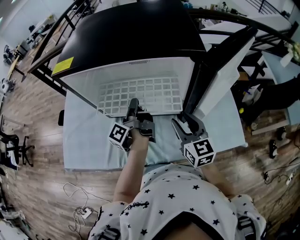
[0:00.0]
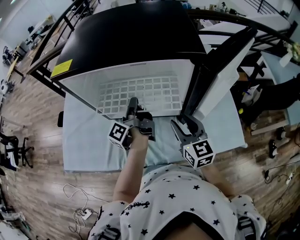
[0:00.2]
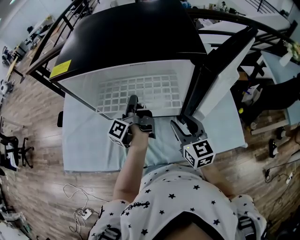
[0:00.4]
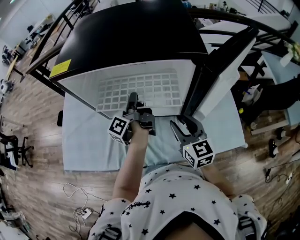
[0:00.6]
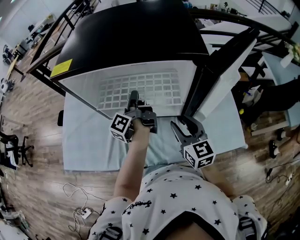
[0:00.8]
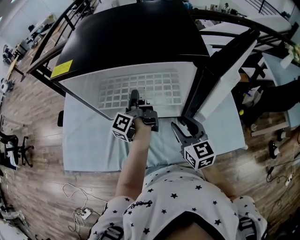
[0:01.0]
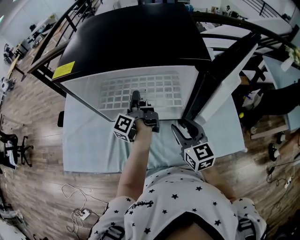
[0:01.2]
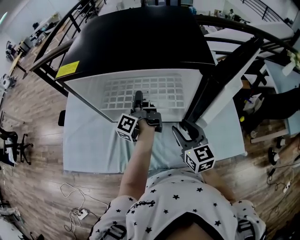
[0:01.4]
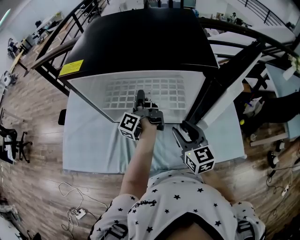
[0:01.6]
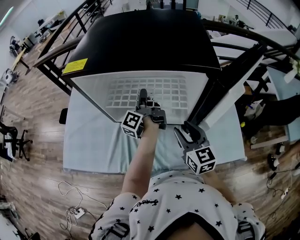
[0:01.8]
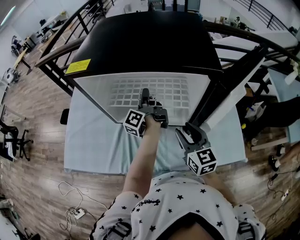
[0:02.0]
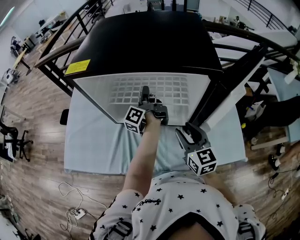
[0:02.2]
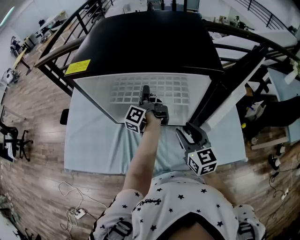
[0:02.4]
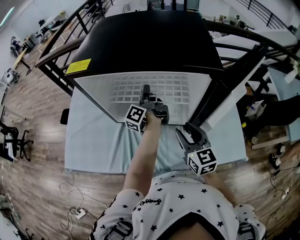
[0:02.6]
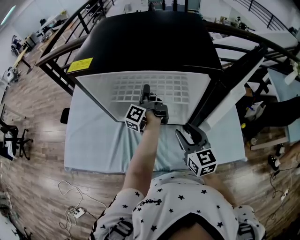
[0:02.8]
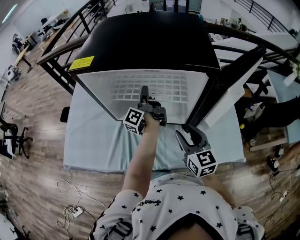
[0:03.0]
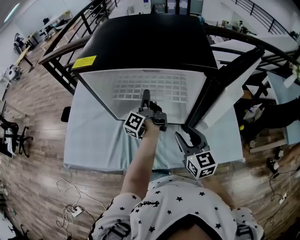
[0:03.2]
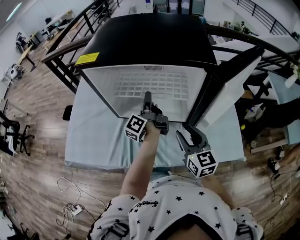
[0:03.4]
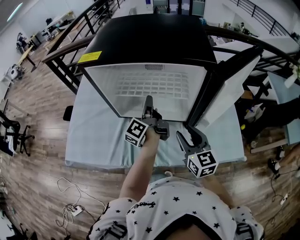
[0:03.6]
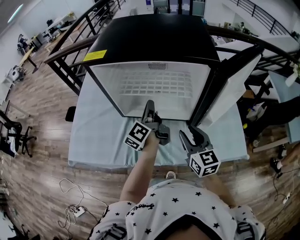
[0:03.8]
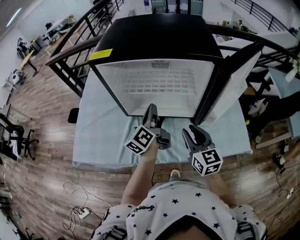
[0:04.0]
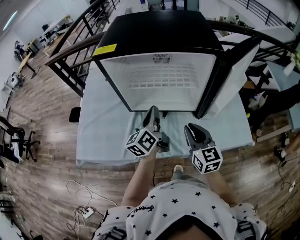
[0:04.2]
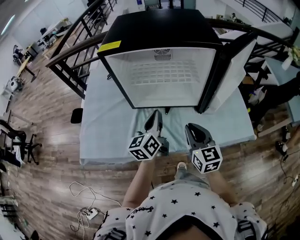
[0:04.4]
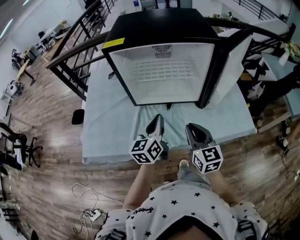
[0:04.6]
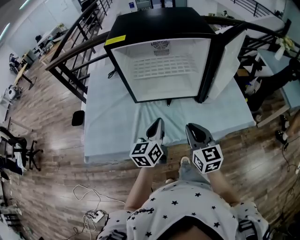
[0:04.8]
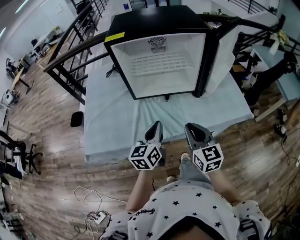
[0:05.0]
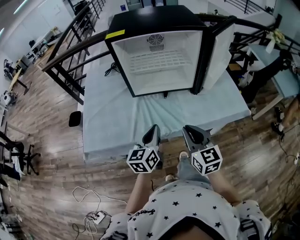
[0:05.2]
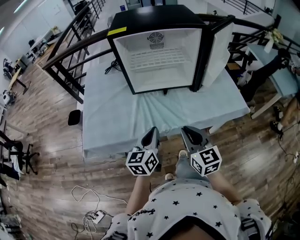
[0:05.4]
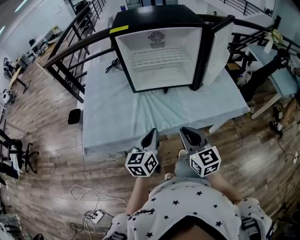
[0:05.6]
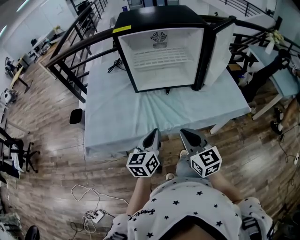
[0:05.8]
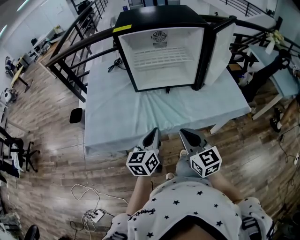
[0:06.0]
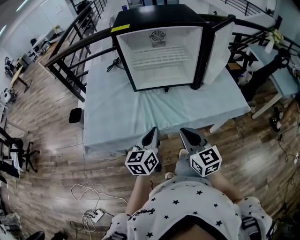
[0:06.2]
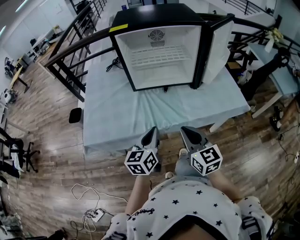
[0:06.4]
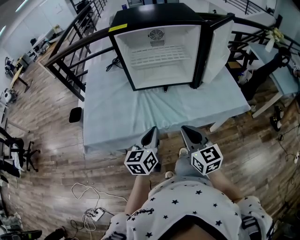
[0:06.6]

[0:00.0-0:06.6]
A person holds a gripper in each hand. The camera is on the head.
0:03.2 to 0:05.0: The right gripper moves some 20 cm, and closes.
0:05.0 to 0:06.6: The right gripper moves about 10 cm.

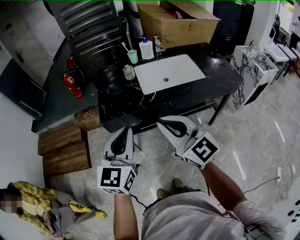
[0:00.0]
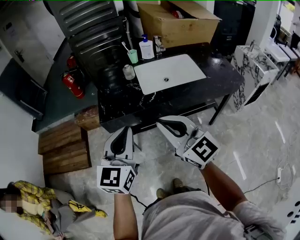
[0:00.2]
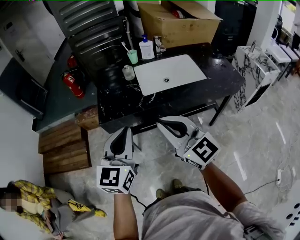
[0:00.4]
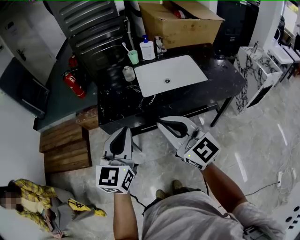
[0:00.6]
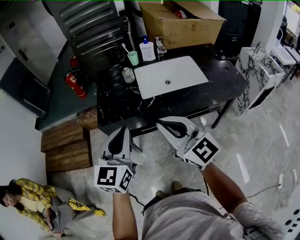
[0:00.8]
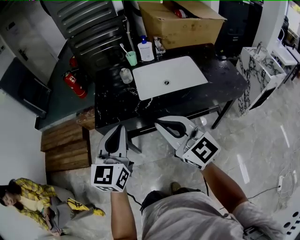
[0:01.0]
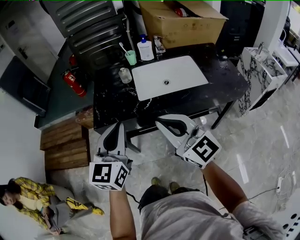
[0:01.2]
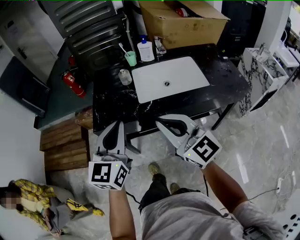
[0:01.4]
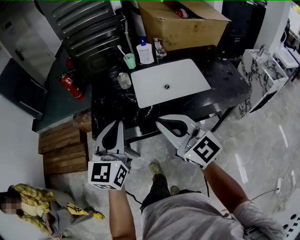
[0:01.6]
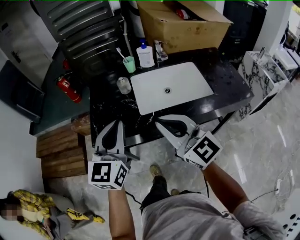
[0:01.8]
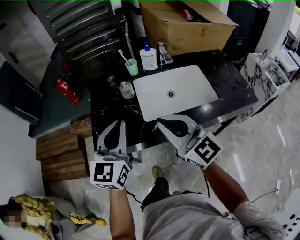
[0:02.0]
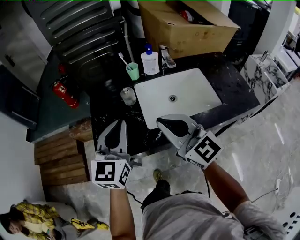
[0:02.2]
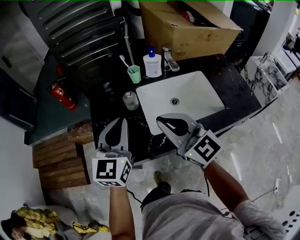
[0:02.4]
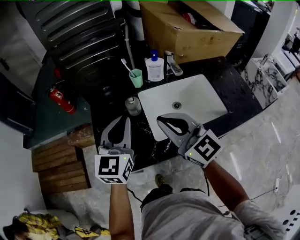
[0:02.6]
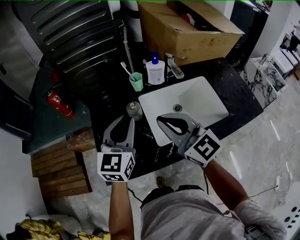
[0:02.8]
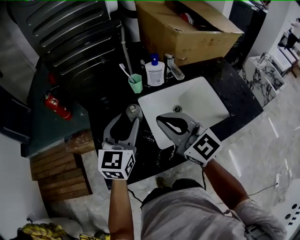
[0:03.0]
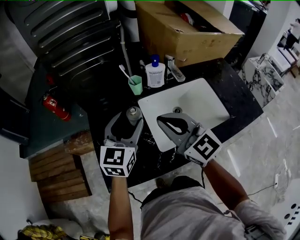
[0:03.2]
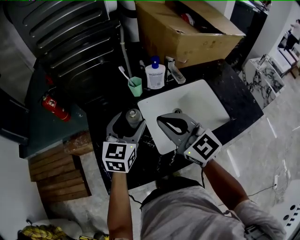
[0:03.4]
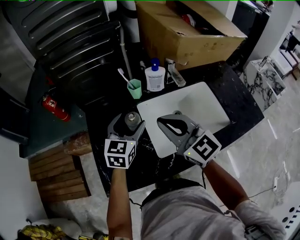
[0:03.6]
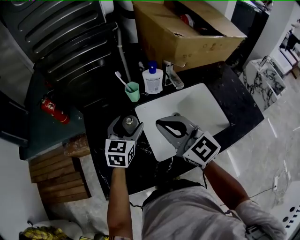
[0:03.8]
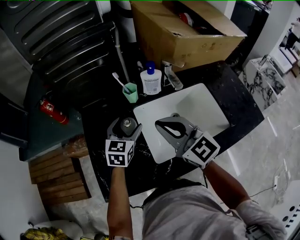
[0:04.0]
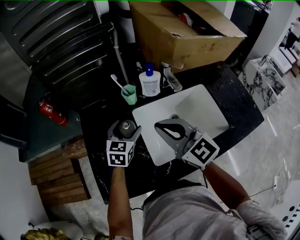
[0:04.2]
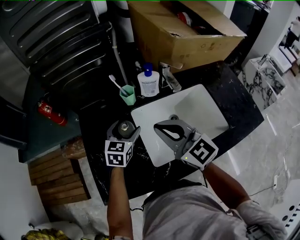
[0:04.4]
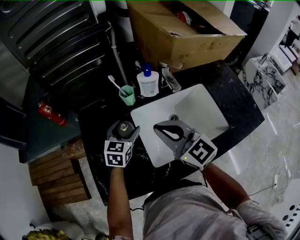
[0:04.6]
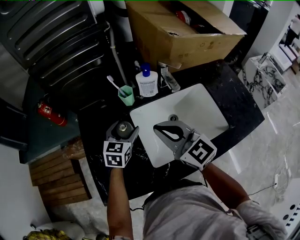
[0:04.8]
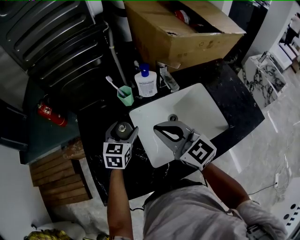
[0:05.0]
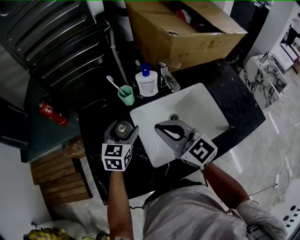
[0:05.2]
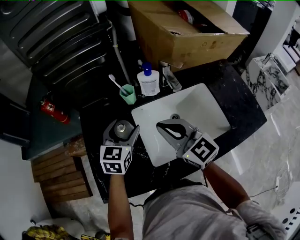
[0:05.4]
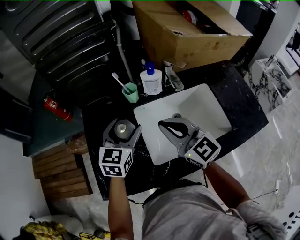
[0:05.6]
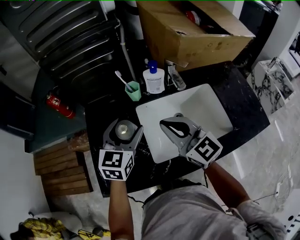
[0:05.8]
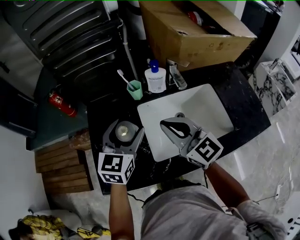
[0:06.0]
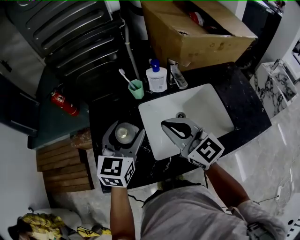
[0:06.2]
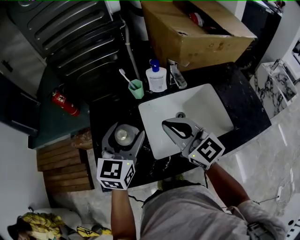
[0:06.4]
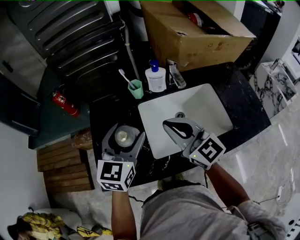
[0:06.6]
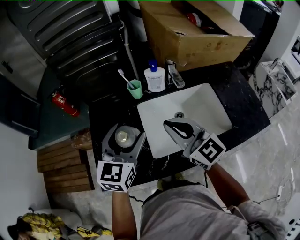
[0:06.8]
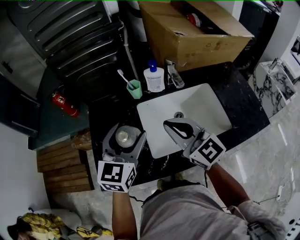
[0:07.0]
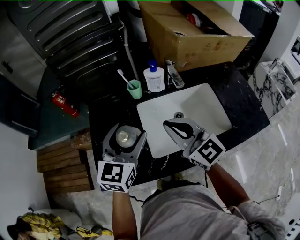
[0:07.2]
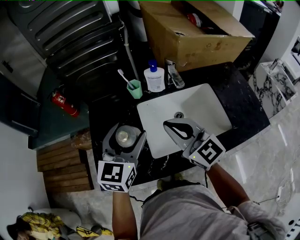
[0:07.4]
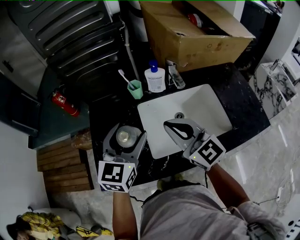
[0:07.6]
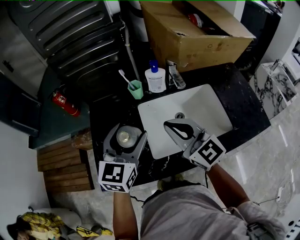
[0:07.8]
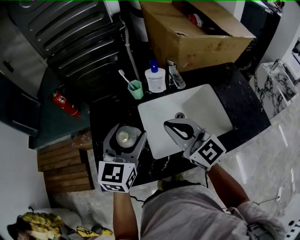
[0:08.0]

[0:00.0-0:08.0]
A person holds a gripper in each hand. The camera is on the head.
0:00.0 to 0:01.6: The two grippers go approximately 15 cm forward and to the right.
0:01.6 to 0:03.2: The two grippers go some 30 cm forward. The left gripper opens.
0:03.2 to 0:04.8: The left gripper moves downward and forward, about 15 cm, while the right gripper changes place by roughly 5 cm.
0:04.8 to 0:06.4: The left gripper heads upward and backward, covering some 15 cm.
0:06.4 to 0:08.0: There are only small adjustments of the grippers.

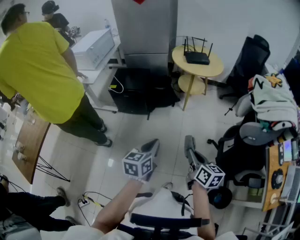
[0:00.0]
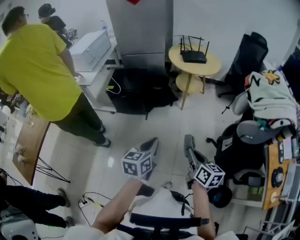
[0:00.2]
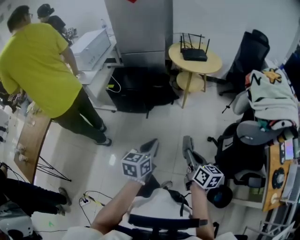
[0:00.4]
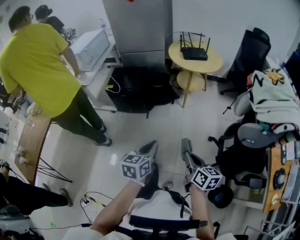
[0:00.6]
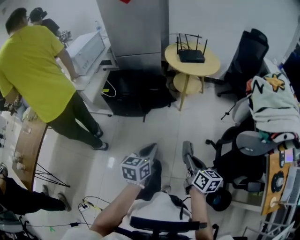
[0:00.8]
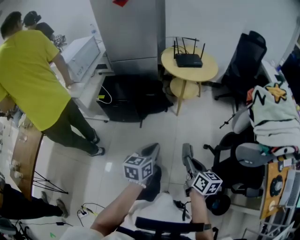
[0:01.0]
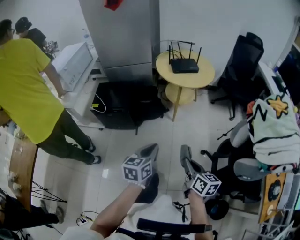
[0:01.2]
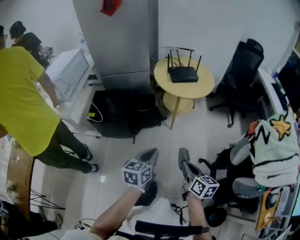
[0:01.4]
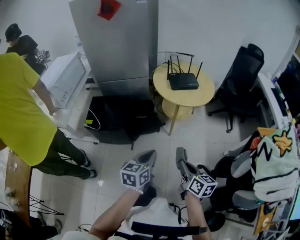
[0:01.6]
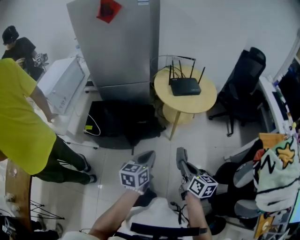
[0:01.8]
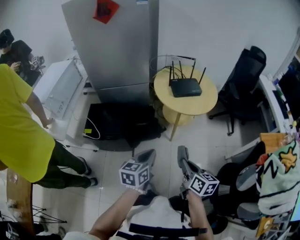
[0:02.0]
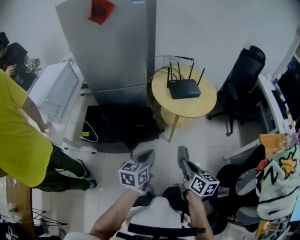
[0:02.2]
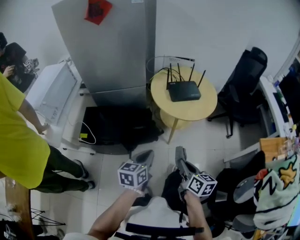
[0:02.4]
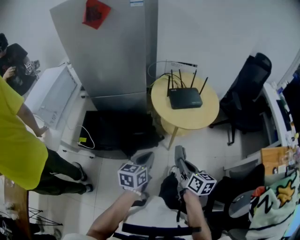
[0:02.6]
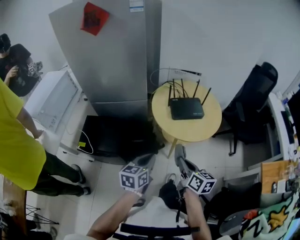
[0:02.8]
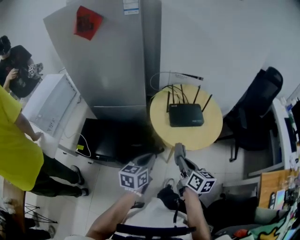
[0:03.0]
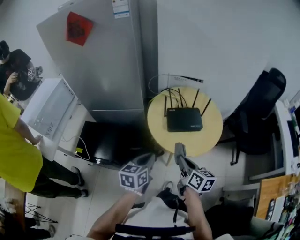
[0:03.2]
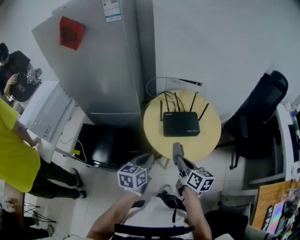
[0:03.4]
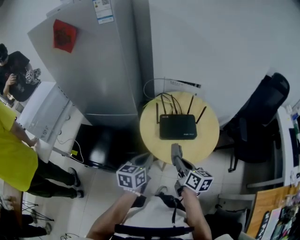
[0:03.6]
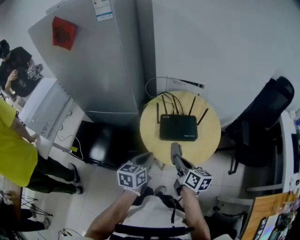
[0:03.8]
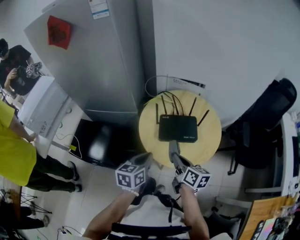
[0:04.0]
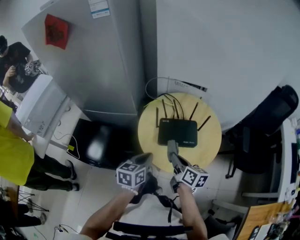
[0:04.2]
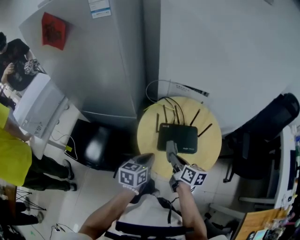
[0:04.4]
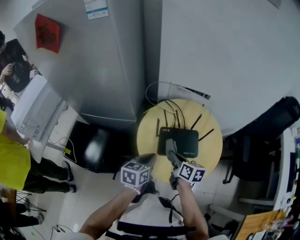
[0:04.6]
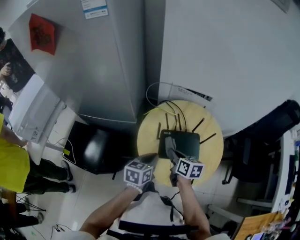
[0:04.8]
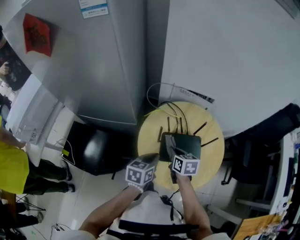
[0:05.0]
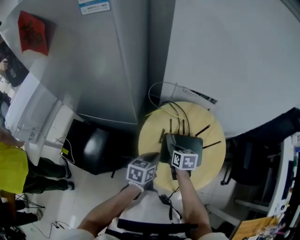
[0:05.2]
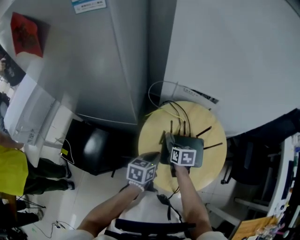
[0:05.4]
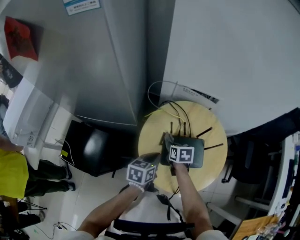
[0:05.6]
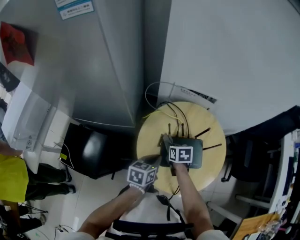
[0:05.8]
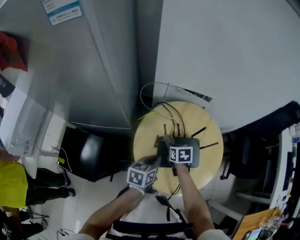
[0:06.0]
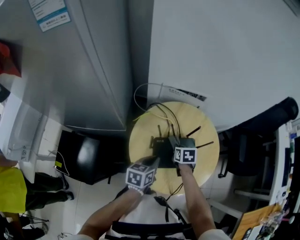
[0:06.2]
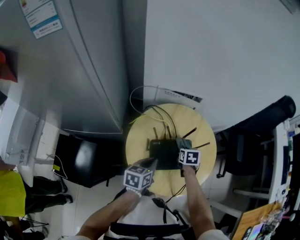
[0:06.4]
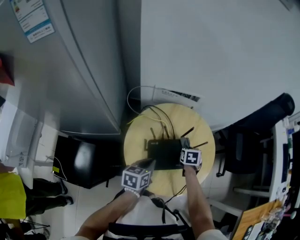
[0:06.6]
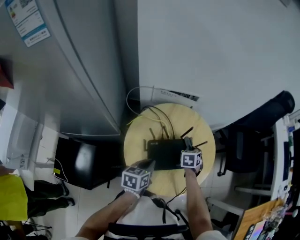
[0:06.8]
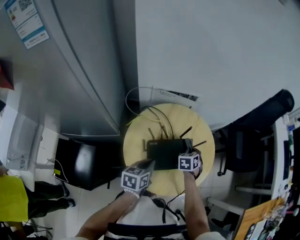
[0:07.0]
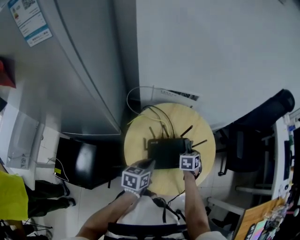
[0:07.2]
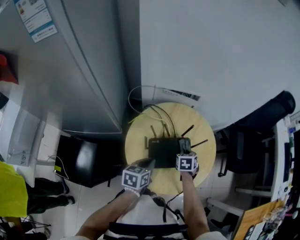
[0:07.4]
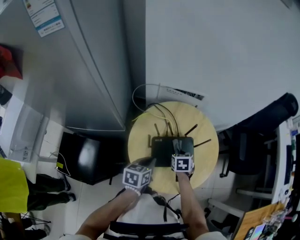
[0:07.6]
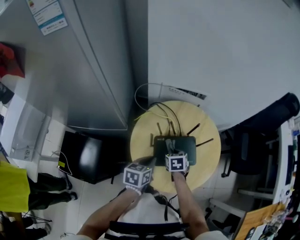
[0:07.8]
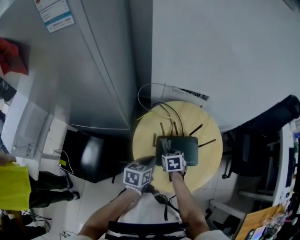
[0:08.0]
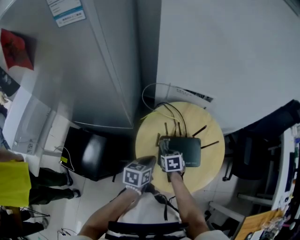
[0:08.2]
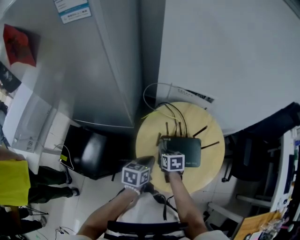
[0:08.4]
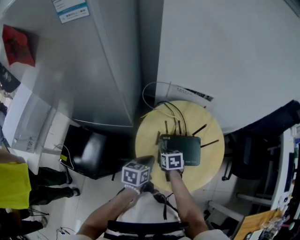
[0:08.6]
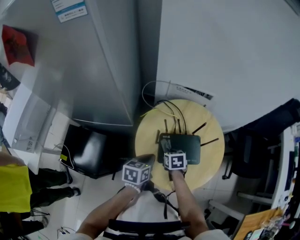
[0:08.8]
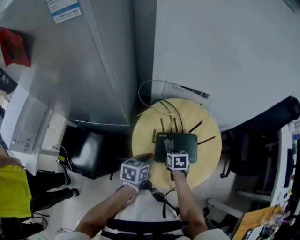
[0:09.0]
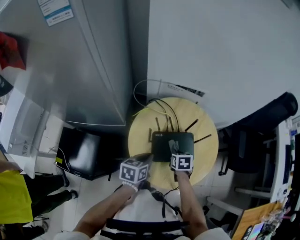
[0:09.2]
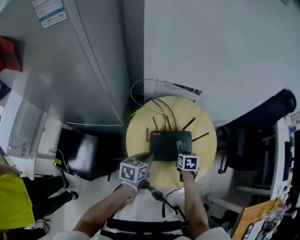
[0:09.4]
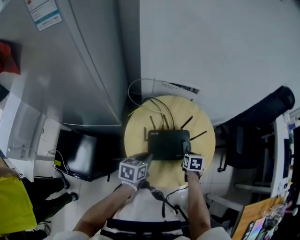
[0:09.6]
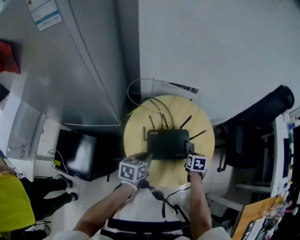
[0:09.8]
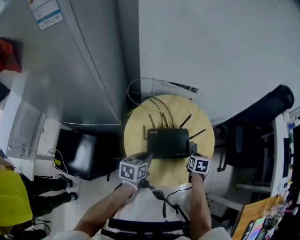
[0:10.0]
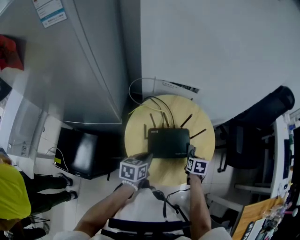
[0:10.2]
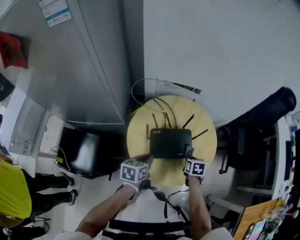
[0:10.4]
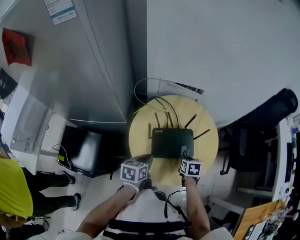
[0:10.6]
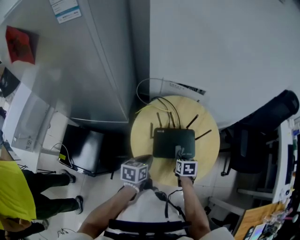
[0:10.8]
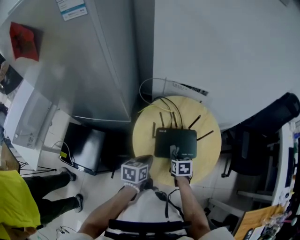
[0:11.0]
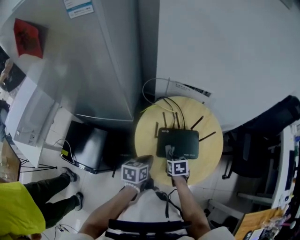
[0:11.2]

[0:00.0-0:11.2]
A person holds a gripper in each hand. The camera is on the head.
0:00.0 to 0:01.6: The grippers both shift forward by roughly 30 cm.
0:01.6 to 0:03.2: The two grippers go roughly 40 cm forward.
0:03.2 to 0:04.8: The two grippers go approximately 25 cm forward.
0:04.8 to 0:06.4: The left gripper goes approximately 5 cm forward. The right gripper shifts roughly 20 cm to the right, forward and downward, and changes its angle by some 40 degrees.
0:06.4 to 0:08.0: The right gripper moves about 15 cm.
0:08.0 to 0:09.6: The right gripper goes about 20 cm to the right.
0:09.6 to 0:11.2: The right gripper is displaced to the left and backward by roughly 15 cm, and changes its angle by some 20 degrees. The left gripper changes place by about 5 cm.
